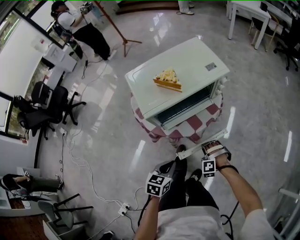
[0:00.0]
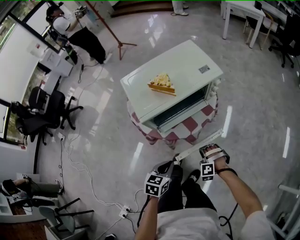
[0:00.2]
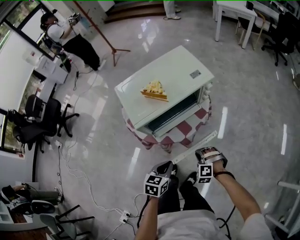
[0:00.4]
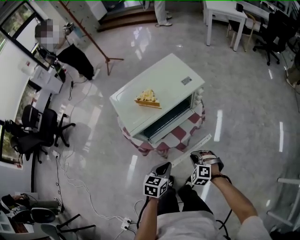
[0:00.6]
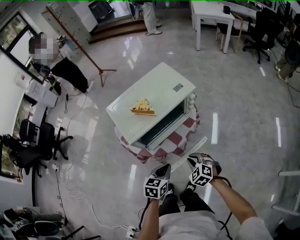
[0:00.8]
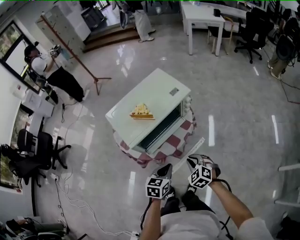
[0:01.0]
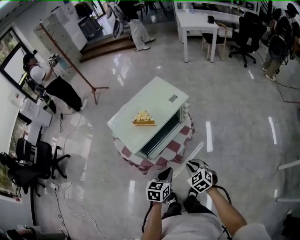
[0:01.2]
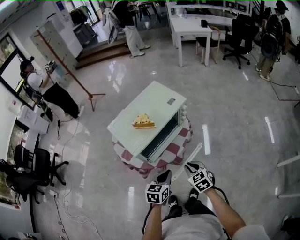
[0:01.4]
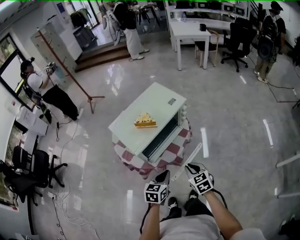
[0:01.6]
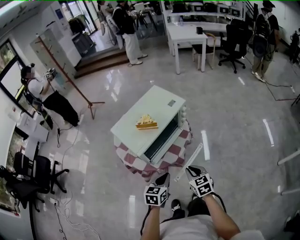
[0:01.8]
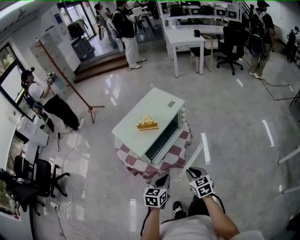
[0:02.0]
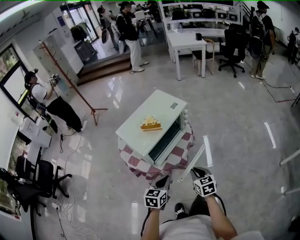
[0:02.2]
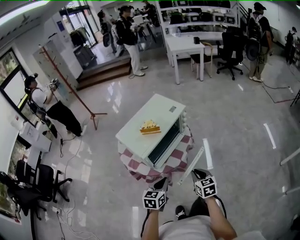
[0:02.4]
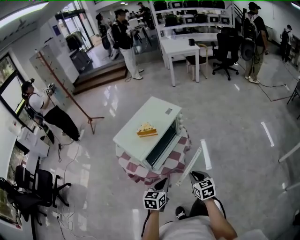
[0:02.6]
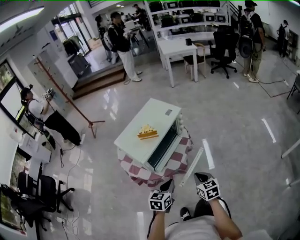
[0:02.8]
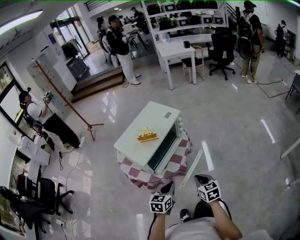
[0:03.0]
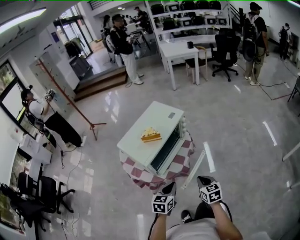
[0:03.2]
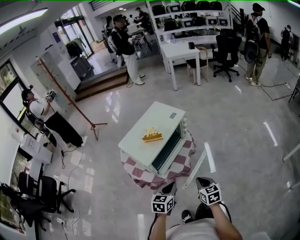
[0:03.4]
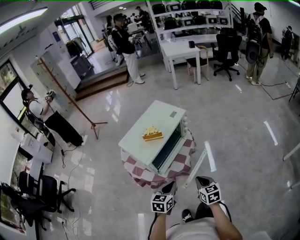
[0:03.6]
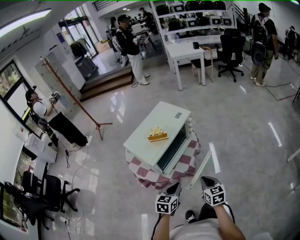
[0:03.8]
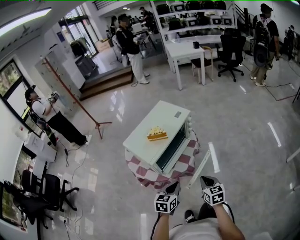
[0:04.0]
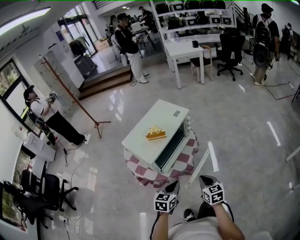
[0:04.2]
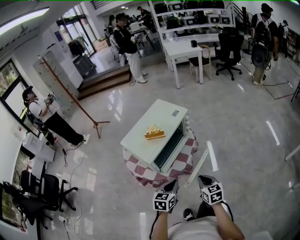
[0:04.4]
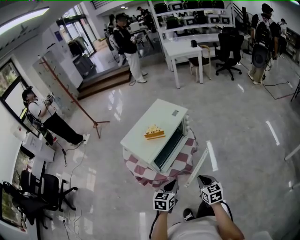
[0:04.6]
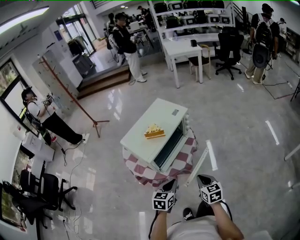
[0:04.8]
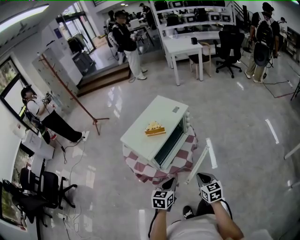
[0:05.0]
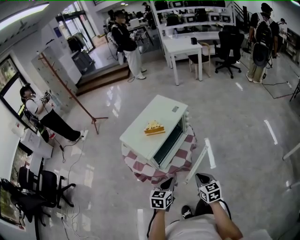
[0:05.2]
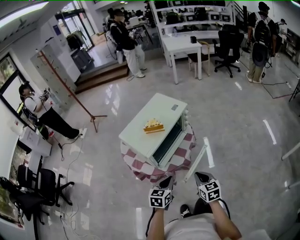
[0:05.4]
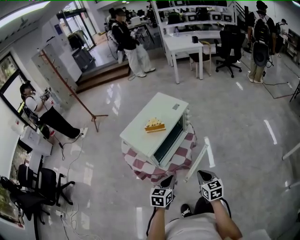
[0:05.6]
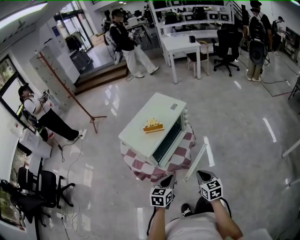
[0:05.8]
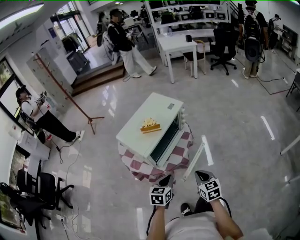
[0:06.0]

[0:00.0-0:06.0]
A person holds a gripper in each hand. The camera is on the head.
0:00.0 to 0:01.6: The left gripper travels upward and forward by about 10 cm; the right gripper is displaced upward by roughly 20 cm, and twists roughly 100 degrees clockwise, seen from behind.
0:01.6 to 0:03.0: The right gripper moves backward, approximately 5 cm.
0:03.0 to 0:06.0: The grippers stay close to where they were, moving slightly.

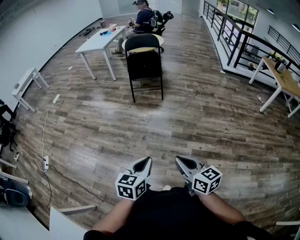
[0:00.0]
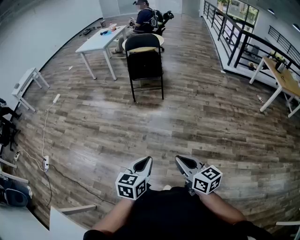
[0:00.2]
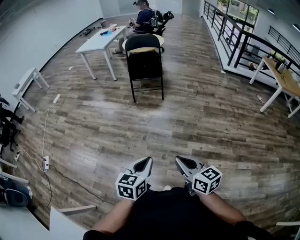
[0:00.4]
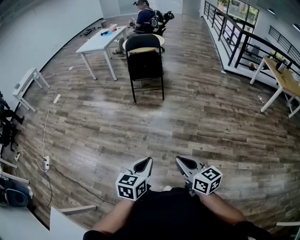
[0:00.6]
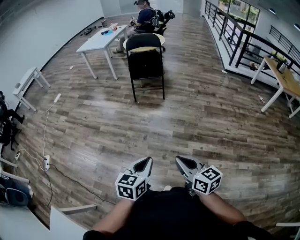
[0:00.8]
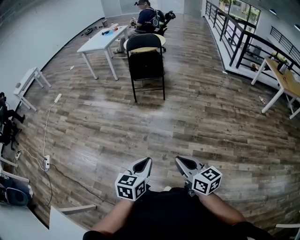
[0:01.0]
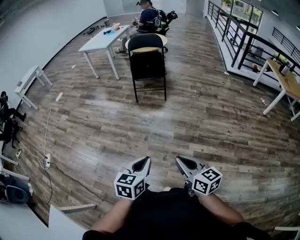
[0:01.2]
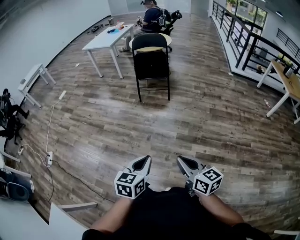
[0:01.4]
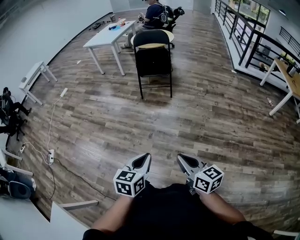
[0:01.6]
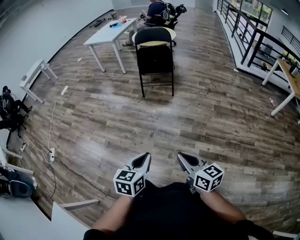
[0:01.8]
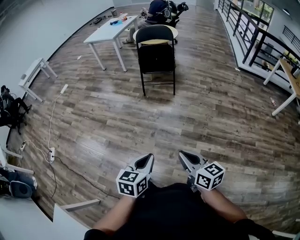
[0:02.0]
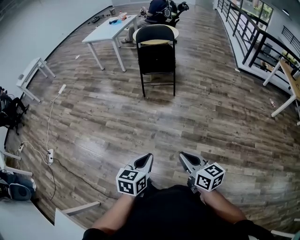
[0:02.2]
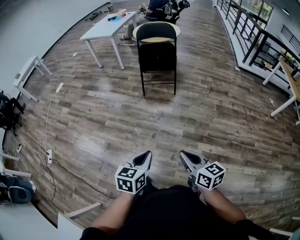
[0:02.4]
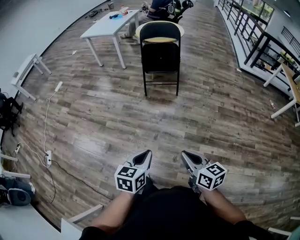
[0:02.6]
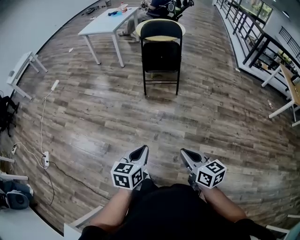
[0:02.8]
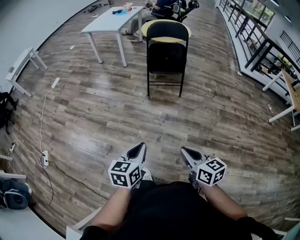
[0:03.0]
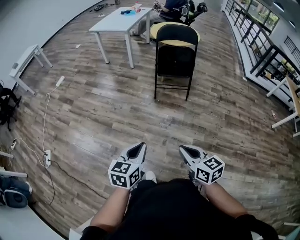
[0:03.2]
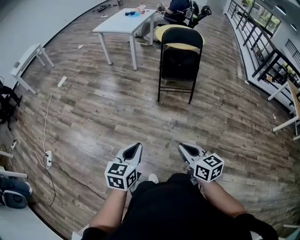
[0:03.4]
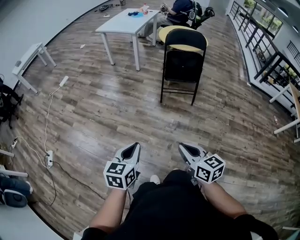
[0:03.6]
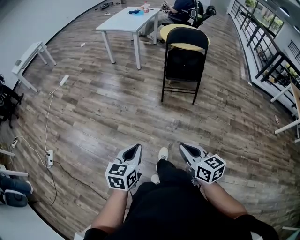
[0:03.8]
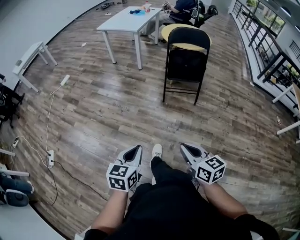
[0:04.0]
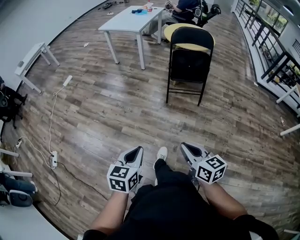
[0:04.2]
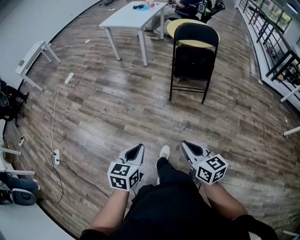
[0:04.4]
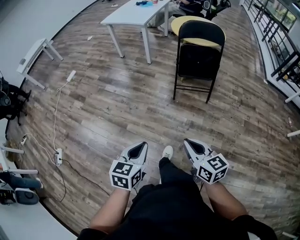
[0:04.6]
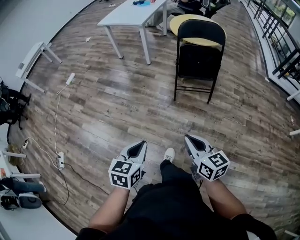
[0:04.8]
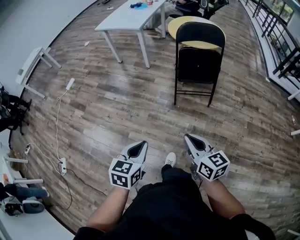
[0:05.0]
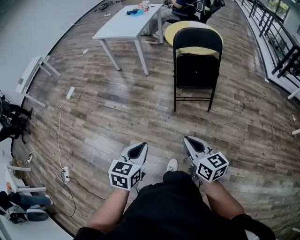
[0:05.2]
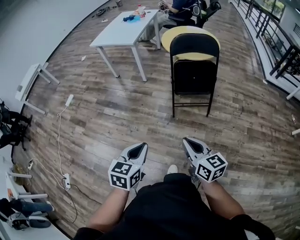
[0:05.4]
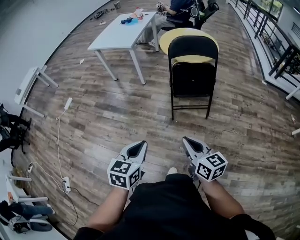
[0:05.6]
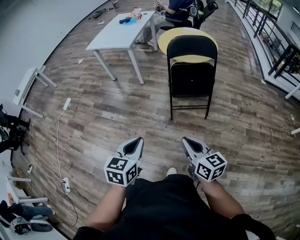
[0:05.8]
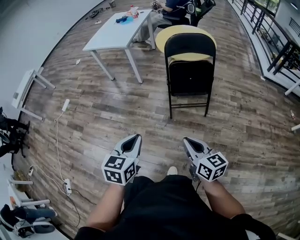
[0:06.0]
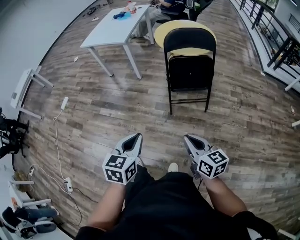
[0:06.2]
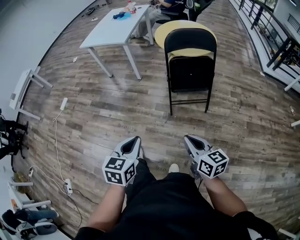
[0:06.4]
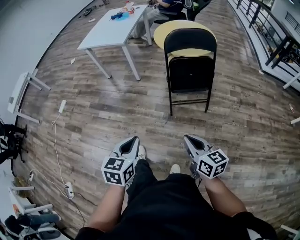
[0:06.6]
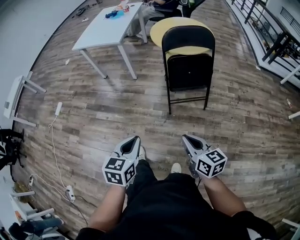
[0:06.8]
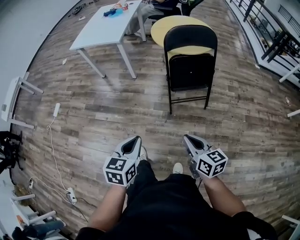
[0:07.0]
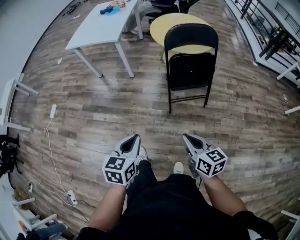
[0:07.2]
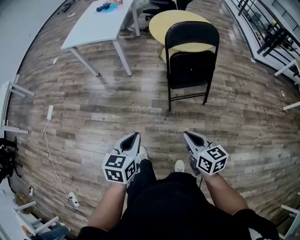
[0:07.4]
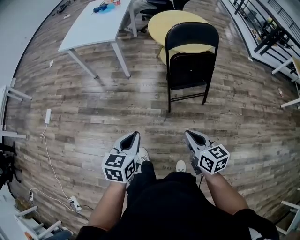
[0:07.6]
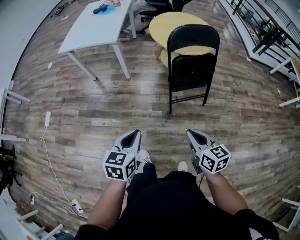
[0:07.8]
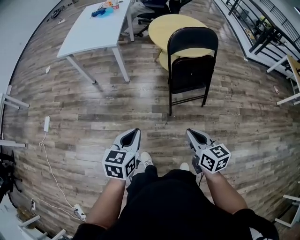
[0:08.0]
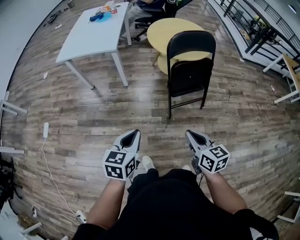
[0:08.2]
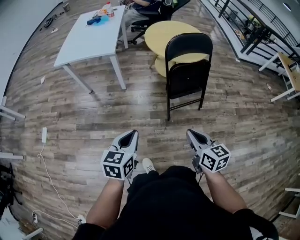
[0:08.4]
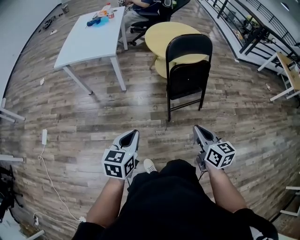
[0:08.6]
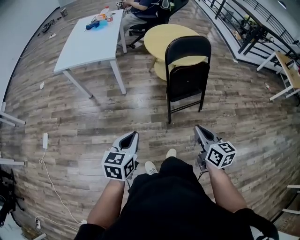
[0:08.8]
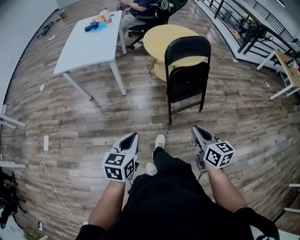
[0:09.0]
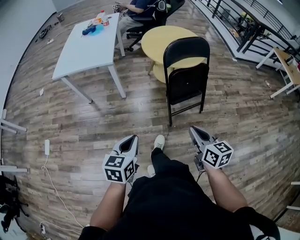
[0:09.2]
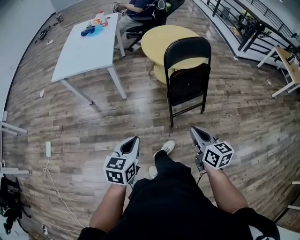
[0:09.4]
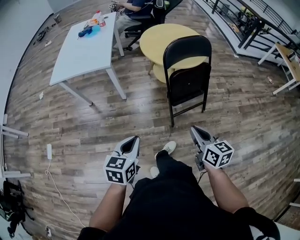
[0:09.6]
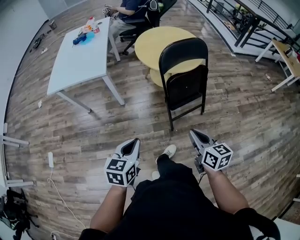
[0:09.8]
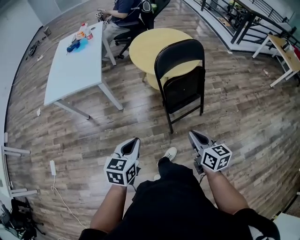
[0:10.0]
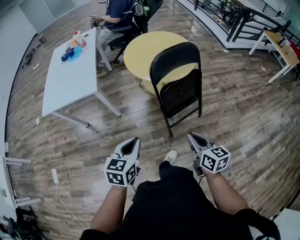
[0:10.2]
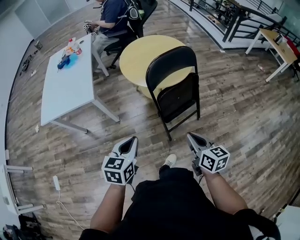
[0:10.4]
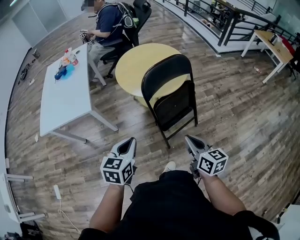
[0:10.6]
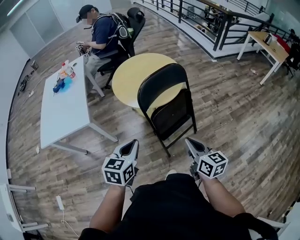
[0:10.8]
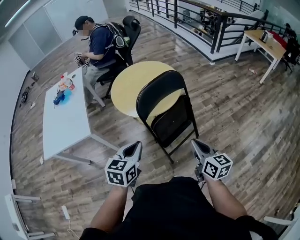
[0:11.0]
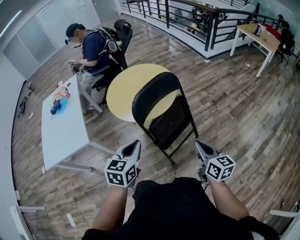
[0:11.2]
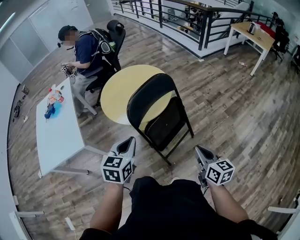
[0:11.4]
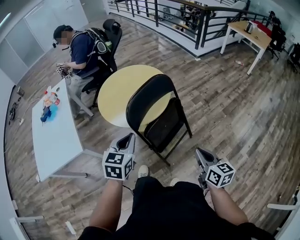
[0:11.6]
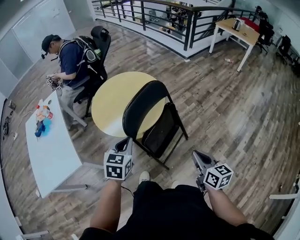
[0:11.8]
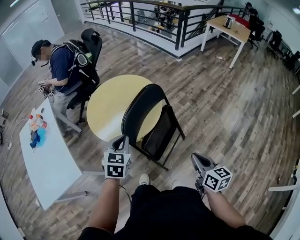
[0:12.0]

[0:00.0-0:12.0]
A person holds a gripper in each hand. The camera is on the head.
0:00.0 to 0:01.6: There are only small adjustments of the grippers.
0:01.6 to 0:03.0: Both grippers travel together forward and to the left, approximately 30 cm.
0:03.0 to 0:04.4: Both grippers move forward and to the left, roughly 20 cm.
0:04.4 to 0:06.0: Both grippers travel together forward, some 25 cm.
0:06.0 to 0:07.6: The grippers both shift forward and to the left by roughly 20 cm.
0:07.6 to 0:09.0: The left gripper goes roughly 15 cm to the left and forward; the right gripper is displaced forward and to the left by some 10 cm.
0:09.0 to 0:10.4: Both grippers travel together forward, roughly 20 cm.
0:10.4 to 0:12.0: The right gripper moves forward and to the right, approximately 10 cm, and changes its angle by approximately 30 degrees. Meanwhile the left gripper travels forward by roughly 30 cm, and swivels approximately 30 degrees.

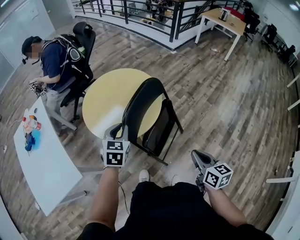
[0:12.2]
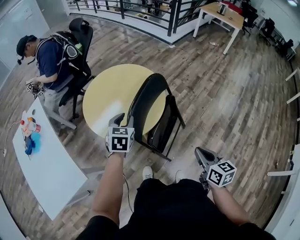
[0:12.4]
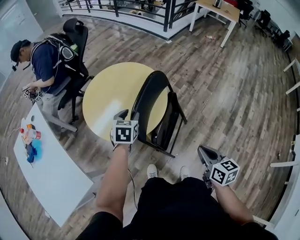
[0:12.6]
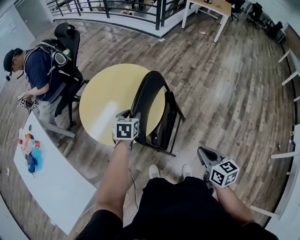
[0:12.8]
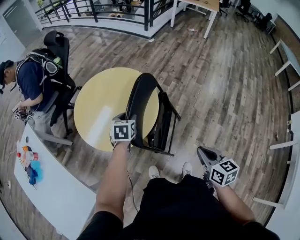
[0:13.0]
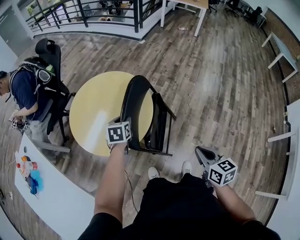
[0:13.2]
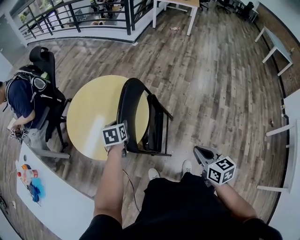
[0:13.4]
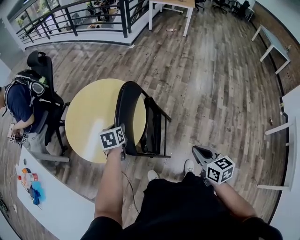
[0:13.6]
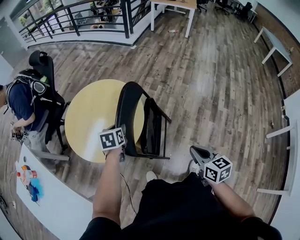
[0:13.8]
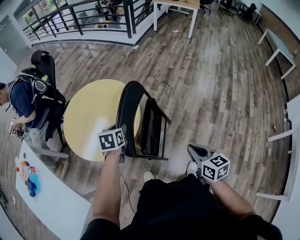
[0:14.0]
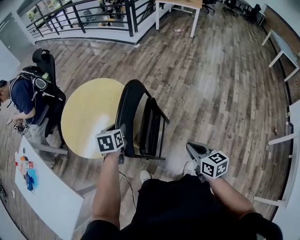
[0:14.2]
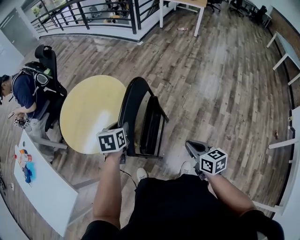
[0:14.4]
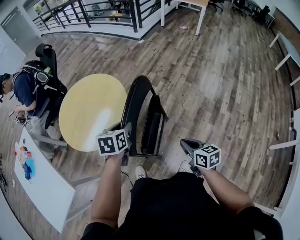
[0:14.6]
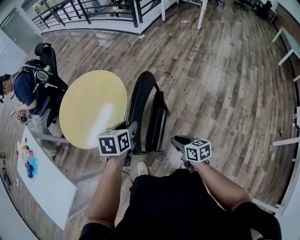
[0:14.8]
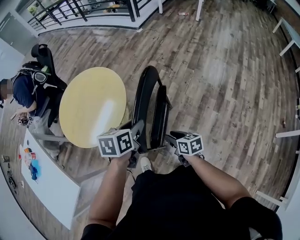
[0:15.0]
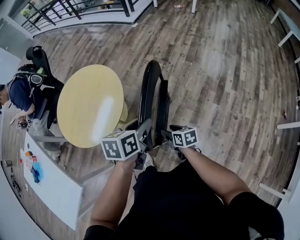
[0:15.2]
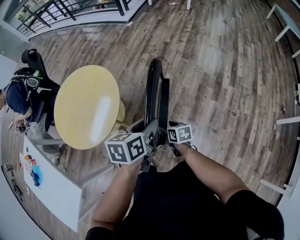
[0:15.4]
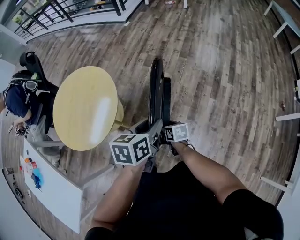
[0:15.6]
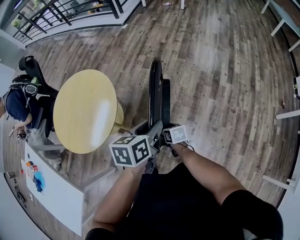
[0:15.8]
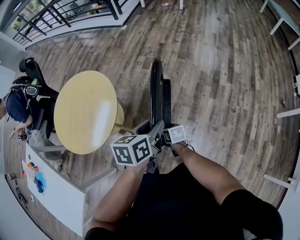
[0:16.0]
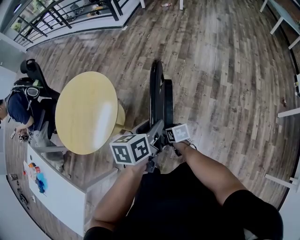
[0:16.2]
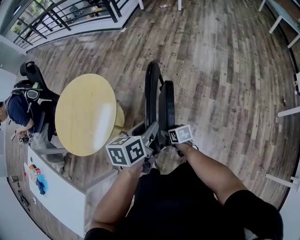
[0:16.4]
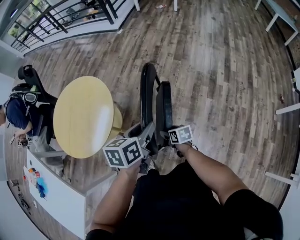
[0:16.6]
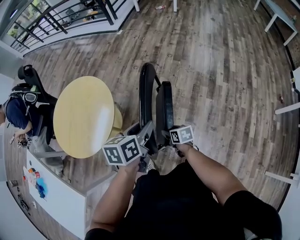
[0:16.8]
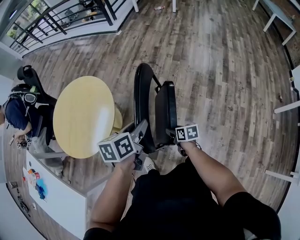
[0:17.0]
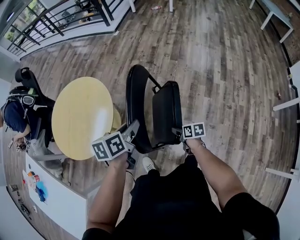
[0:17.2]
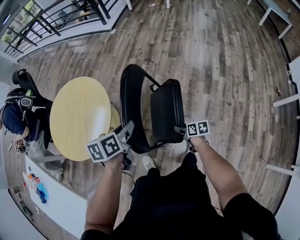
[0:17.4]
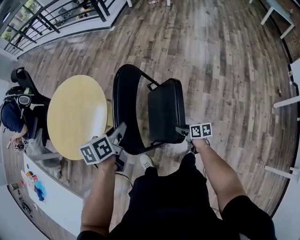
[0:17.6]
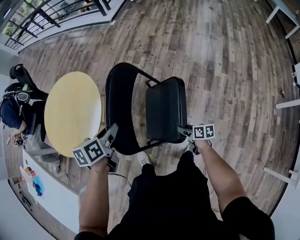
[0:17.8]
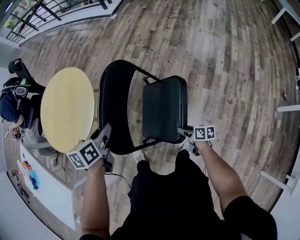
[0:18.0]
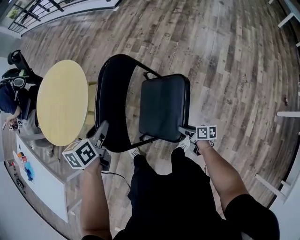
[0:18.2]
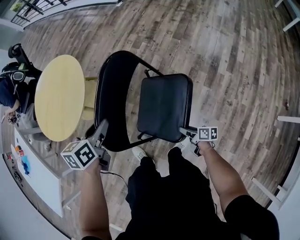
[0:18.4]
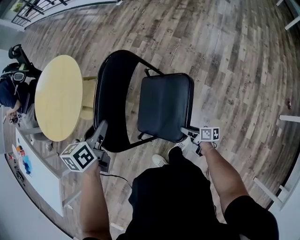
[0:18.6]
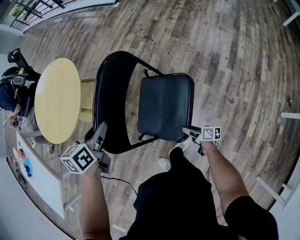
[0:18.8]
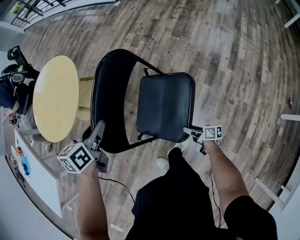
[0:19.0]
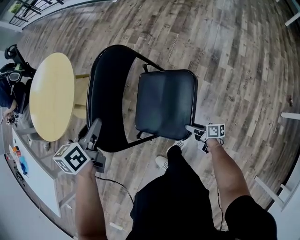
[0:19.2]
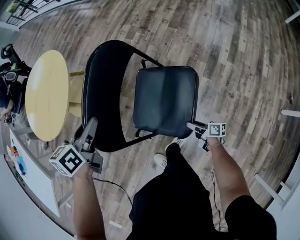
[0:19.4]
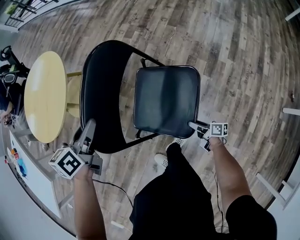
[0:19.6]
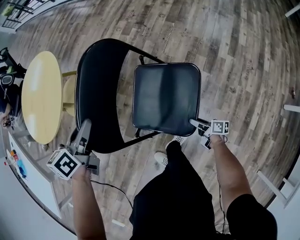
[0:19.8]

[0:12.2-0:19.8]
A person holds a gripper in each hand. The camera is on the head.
0:12.2 to 0:13.8: The left gripper is displaced forward and downward by roughly 15 cm, rotates about 30 degrees, and opens its fingers.
0:13.8 to 0:15.2: The right gripper moves downward, about 20 cm, changes its angle by roughly 20 degrees, and opens up, while the left gripper shifts about 30 cm to the right and backward.
0:15.2 to 0:16.8: The two grippers go some 5 cm to the right.
0:16.8 to 0:18.2: The right gripper moves to the right and downward, roughly 25 cm, and swivels approximately 30 degrees, while the left gripper shifts approximately 10 cm downward.
0:18.2 to 0:19.8: The left gripper moves downward, roughly 5 cm. Meanwhile the right gripper goes some 15 cm downward, to the right and backward.
